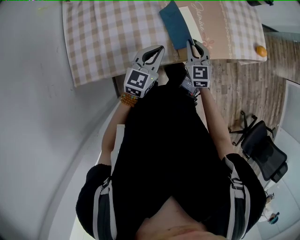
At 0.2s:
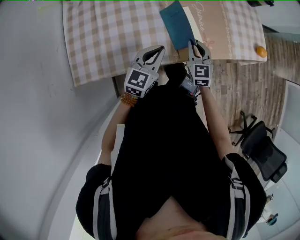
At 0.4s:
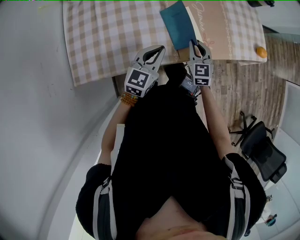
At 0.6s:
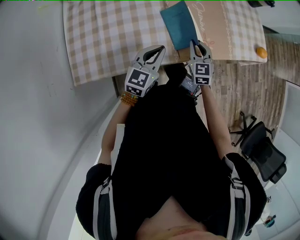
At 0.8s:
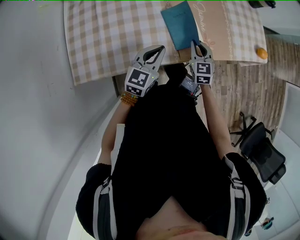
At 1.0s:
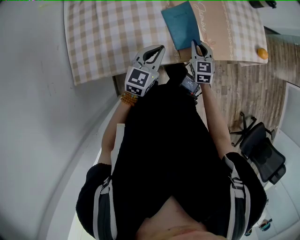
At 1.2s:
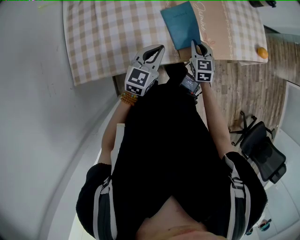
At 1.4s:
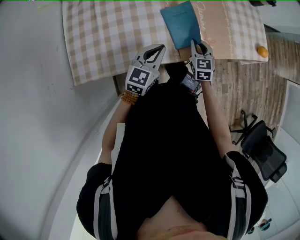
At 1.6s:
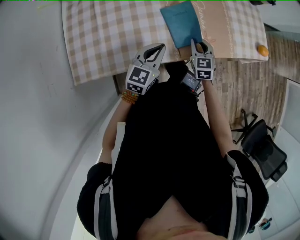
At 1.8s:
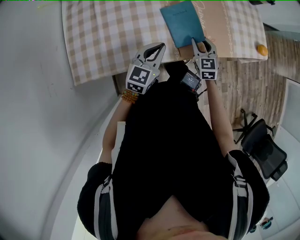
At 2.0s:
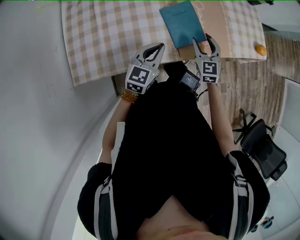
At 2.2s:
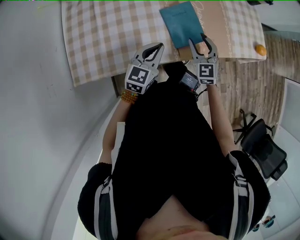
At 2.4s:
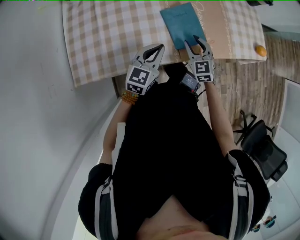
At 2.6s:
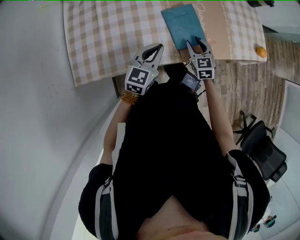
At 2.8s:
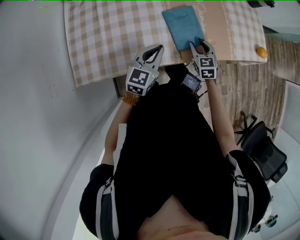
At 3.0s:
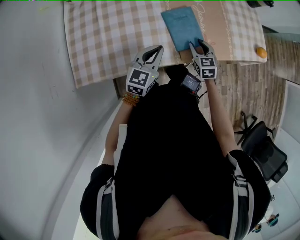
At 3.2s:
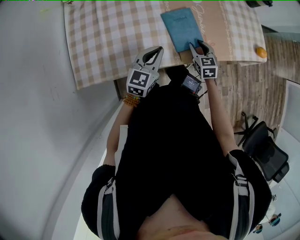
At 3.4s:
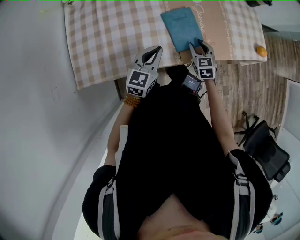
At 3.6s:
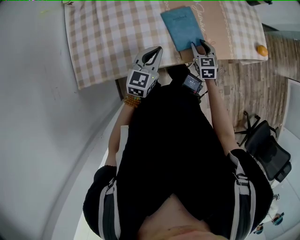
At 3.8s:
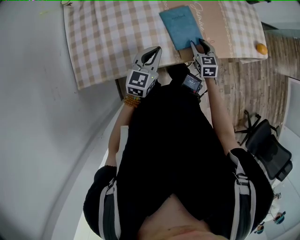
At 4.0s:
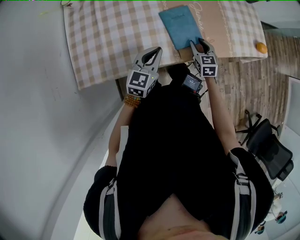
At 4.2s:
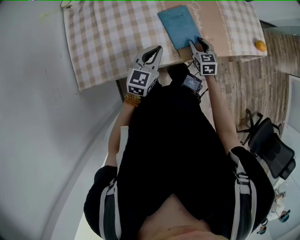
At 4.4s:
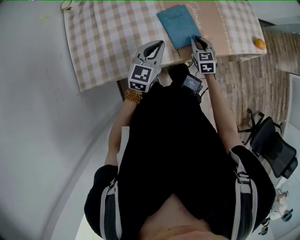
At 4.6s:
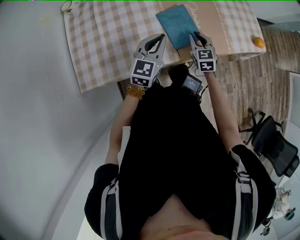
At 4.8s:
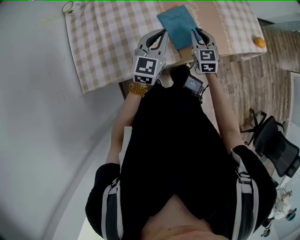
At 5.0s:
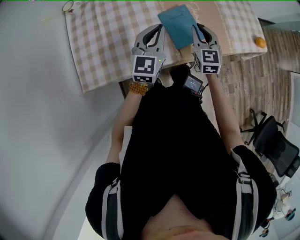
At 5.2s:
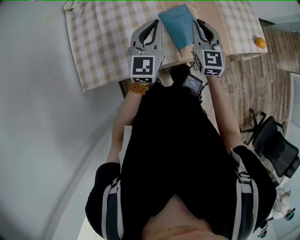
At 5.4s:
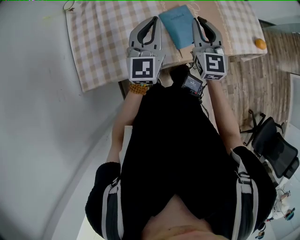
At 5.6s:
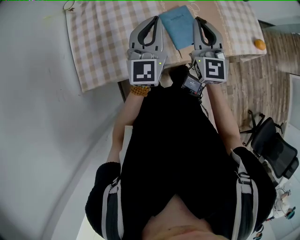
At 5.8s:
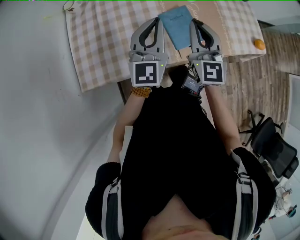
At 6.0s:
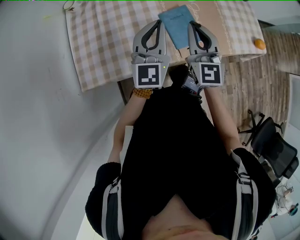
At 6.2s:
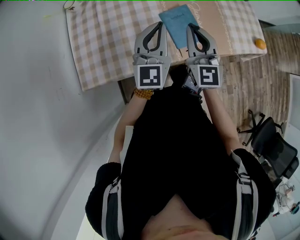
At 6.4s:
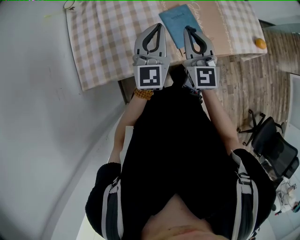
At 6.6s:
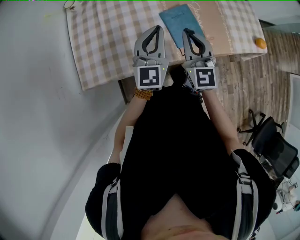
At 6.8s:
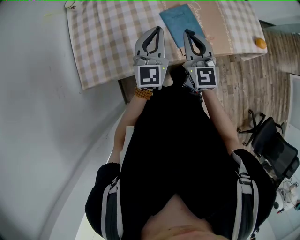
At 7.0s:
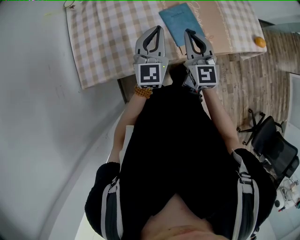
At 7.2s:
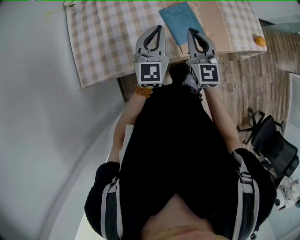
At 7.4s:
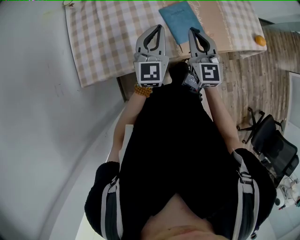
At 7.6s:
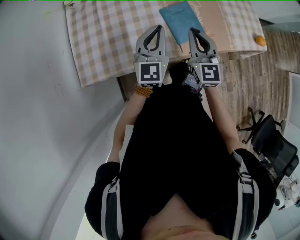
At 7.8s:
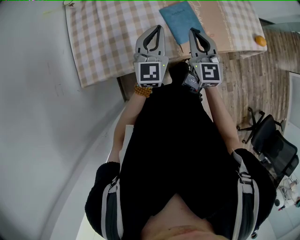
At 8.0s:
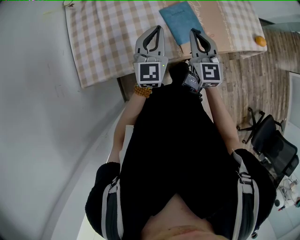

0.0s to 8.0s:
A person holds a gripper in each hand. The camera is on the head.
0.0s to 1.6s: The right gripper travels downward by about 5 cm.
1.6s to 3.2s: The right gripper moves about 5 cm upward and comes back, and opens up.
3.2s to 4.8s: The two grippers go some 10 cm upward. The right gripper closes its fingers.
4.8s to 6.4s: The right gripper is displaced upward and to the left by some 15 cm, and changes its angle by roughly 20 degrees; the left gripper heads upward, covering approximately 10 cm, and changes its angle by some 20 degrees.
6.4s to 8.0s: The two grippers go roughly 5 cm downward.

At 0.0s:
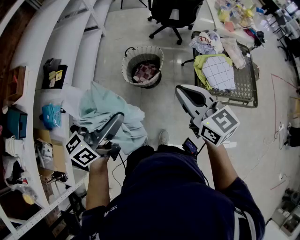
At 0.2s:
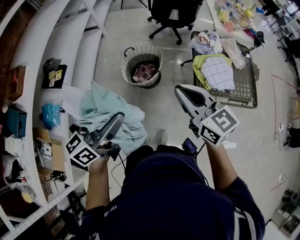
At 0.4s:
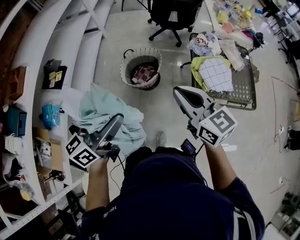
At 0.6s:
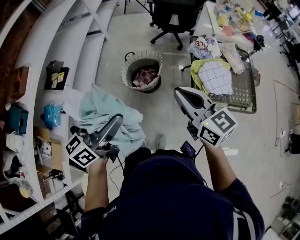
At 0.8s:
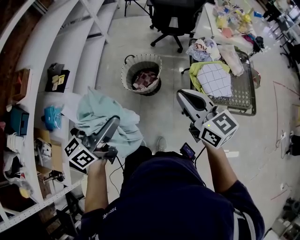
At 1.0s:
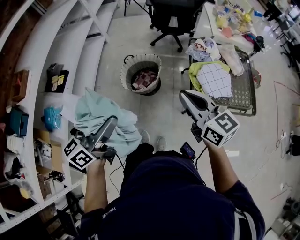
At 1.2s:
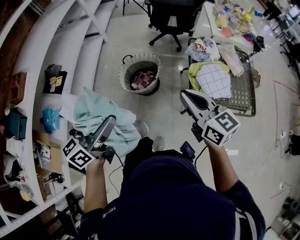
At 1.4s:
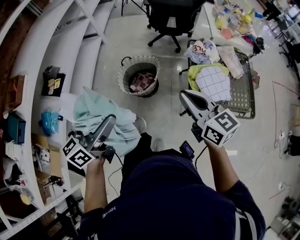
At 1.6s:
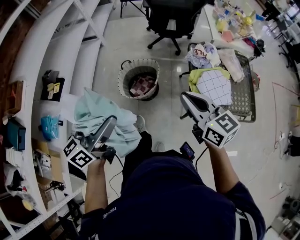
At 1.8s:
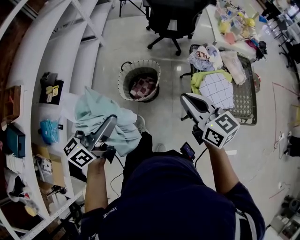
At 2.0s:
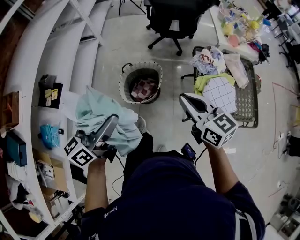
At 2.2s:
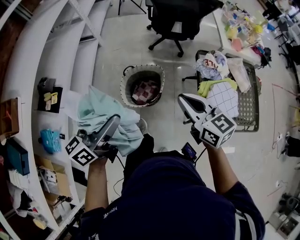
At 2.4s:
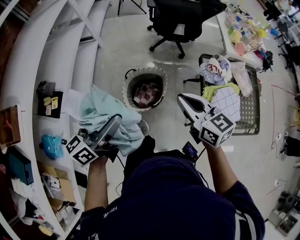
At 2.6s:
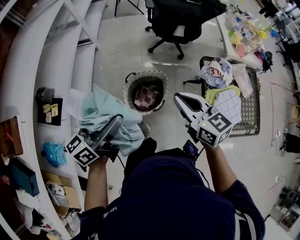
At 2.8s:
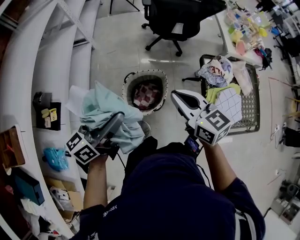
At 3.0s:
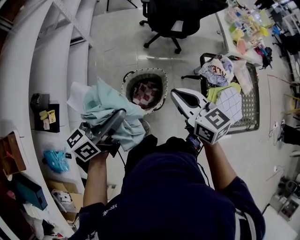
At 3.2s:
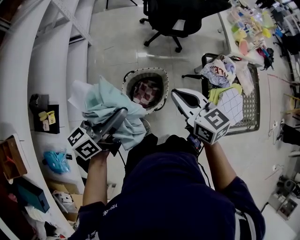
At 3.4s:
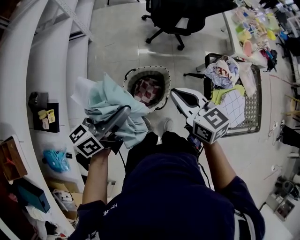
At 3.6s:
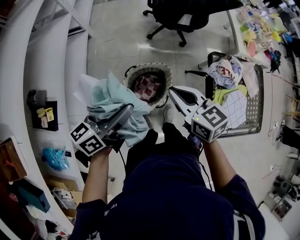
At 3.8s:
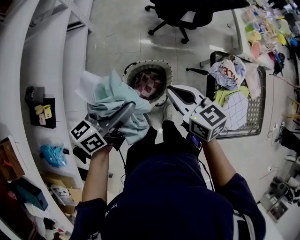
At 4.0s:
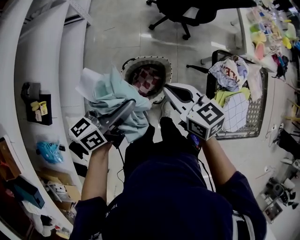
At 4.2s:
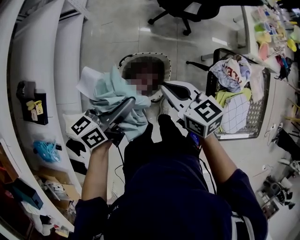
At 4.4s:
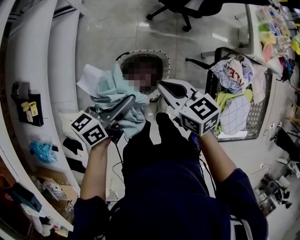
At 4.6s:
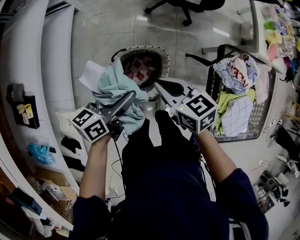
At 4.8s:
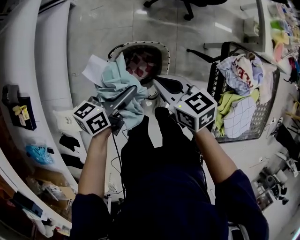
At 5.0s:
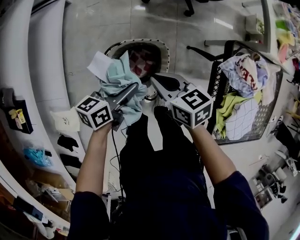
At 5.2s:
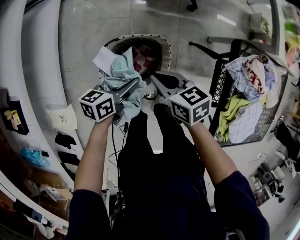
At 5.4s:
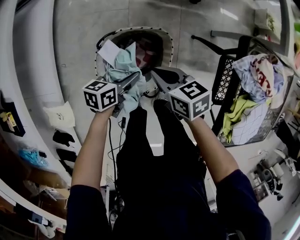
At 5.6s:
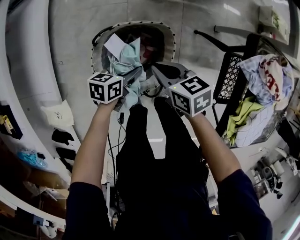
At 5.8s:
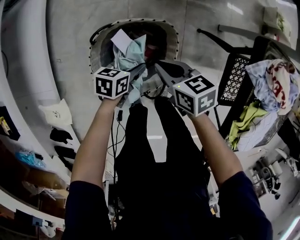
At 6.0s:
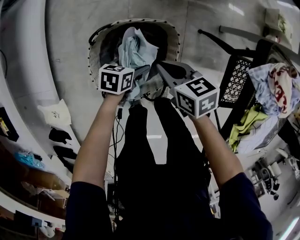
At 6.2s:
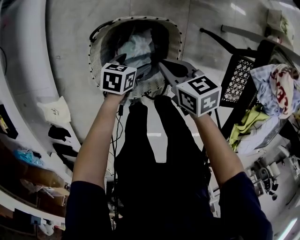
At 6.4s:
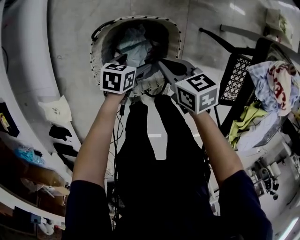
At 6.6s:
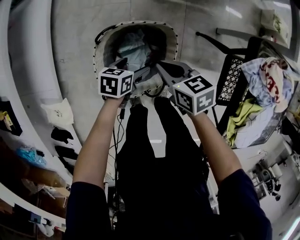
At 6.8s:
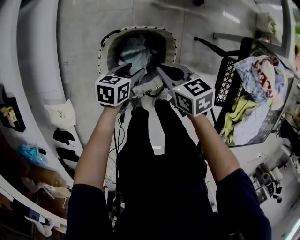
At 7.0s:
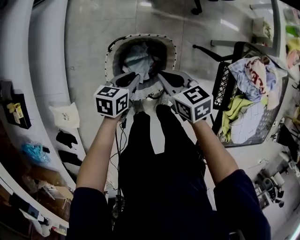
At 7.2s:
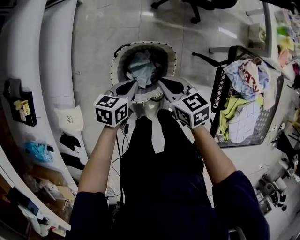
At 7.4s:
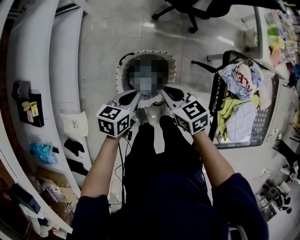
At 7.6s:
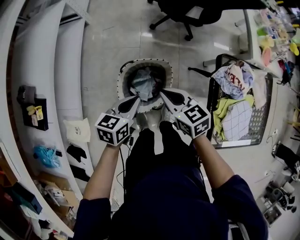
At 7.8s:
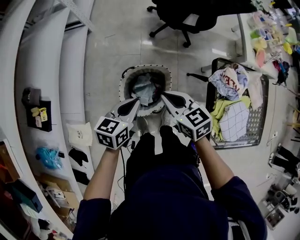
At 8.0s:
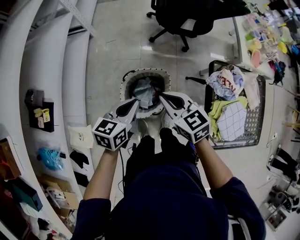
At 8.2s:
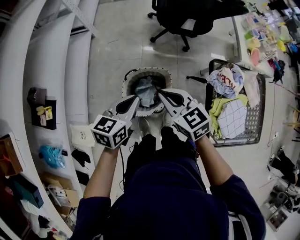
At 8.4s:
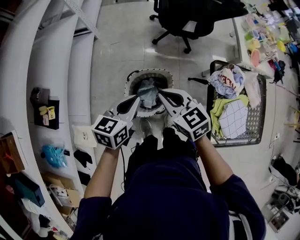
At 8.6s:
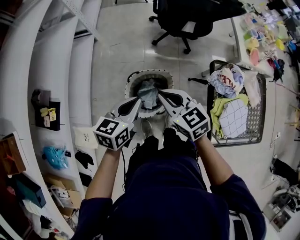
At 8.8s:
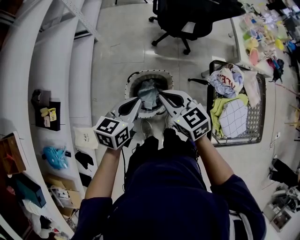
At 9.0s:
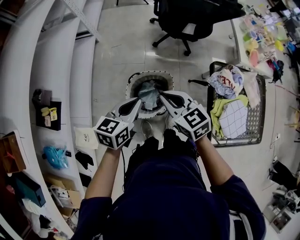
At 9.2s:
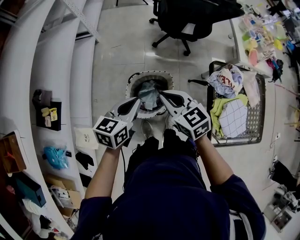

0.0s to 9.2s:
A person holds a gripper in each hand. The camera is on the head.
0.0s to 1.6s: The left gripper travels forward by roughly 5 cm. Meanwhile the right gripper travels to the right and forward by some 10 cm.
1.6s to 3.0s: The left gripper moves forward, some 30 cm; the right gripper shifts roughly 30 cm forward and to the left.
3.0s to 4.6s: The grippers both shift downward and forward by some 25 cm. The right gripper turns by some 20 degrees. Meanwhile the left gripper rotates roughly 20 degrees.
4.6s to 6.2s: Both grippers move downward, roughly 35 cm. The left gripper points its fingers approximately 40 degrees further downward, and opens.
6.2s to 7.6s: The grippers both shift upward by approximately 35 cm. The left gripper changes its angle by roughly 30 degrees, and closes up. The right gripper turns by some 20 degrees.
7.6s to 9.2s: The grippers both shift upward by approximately 15 cm.

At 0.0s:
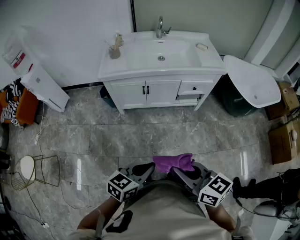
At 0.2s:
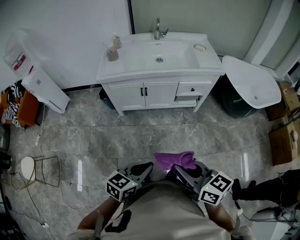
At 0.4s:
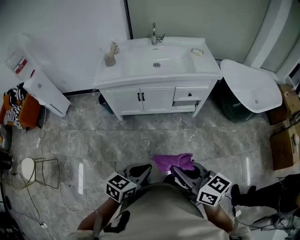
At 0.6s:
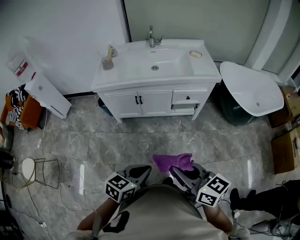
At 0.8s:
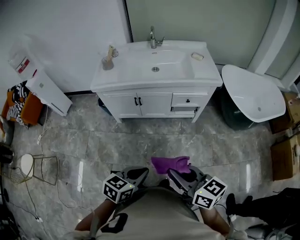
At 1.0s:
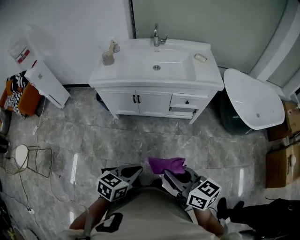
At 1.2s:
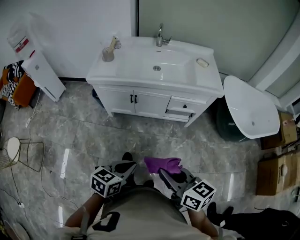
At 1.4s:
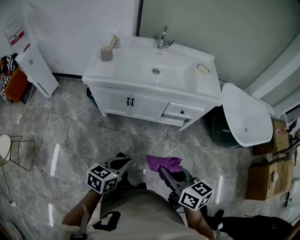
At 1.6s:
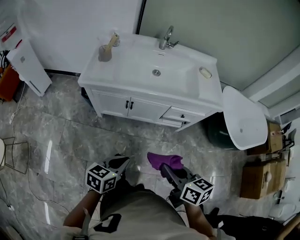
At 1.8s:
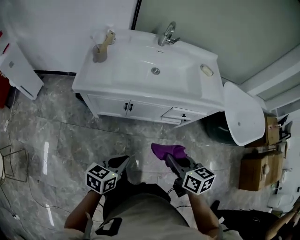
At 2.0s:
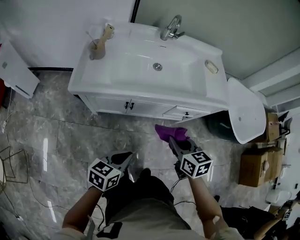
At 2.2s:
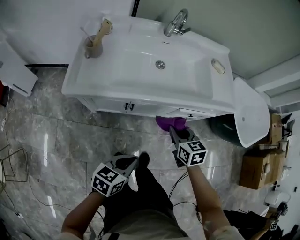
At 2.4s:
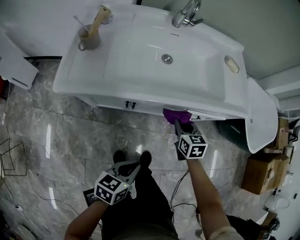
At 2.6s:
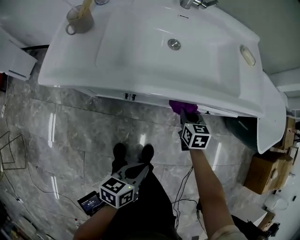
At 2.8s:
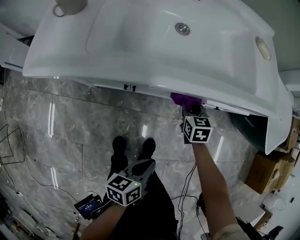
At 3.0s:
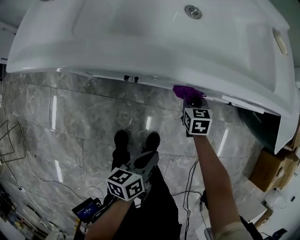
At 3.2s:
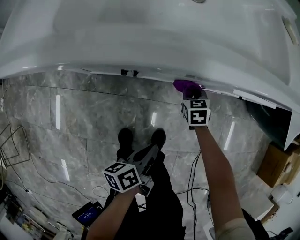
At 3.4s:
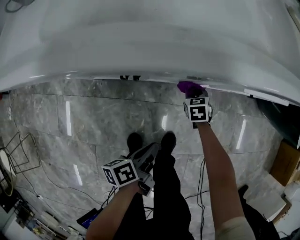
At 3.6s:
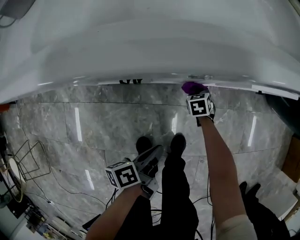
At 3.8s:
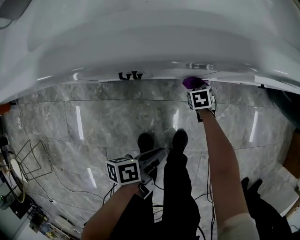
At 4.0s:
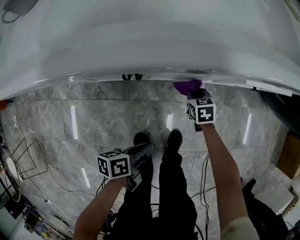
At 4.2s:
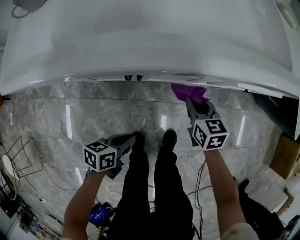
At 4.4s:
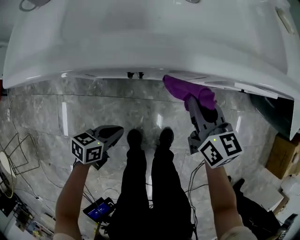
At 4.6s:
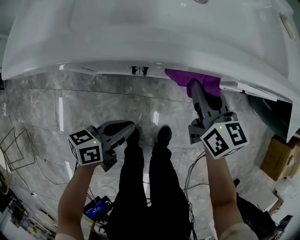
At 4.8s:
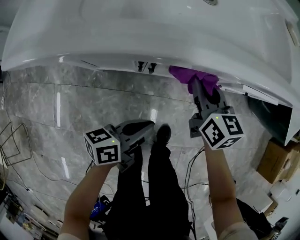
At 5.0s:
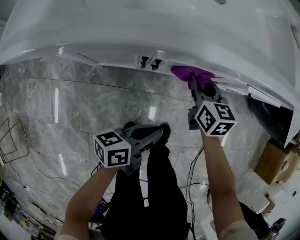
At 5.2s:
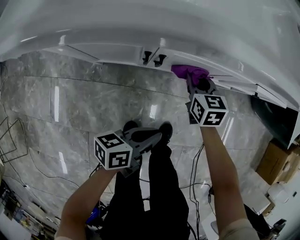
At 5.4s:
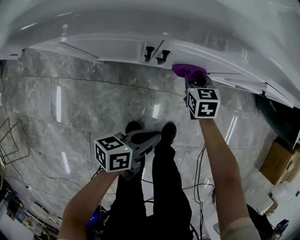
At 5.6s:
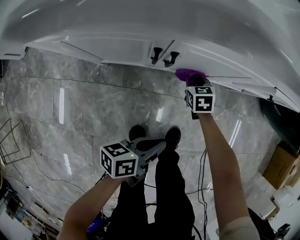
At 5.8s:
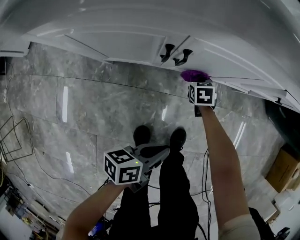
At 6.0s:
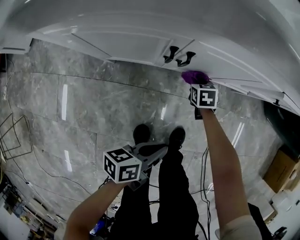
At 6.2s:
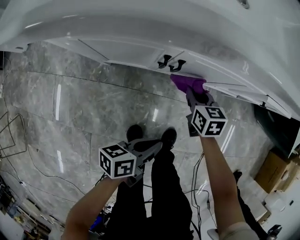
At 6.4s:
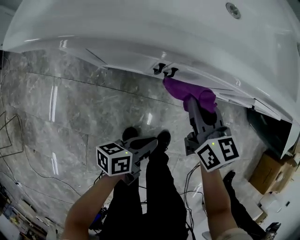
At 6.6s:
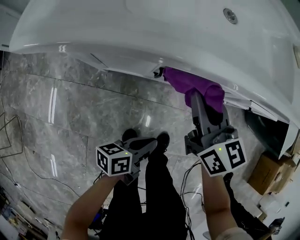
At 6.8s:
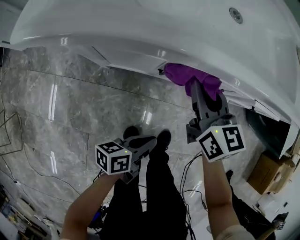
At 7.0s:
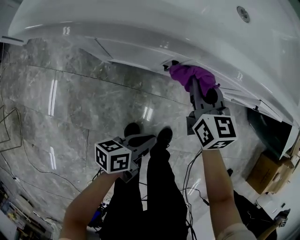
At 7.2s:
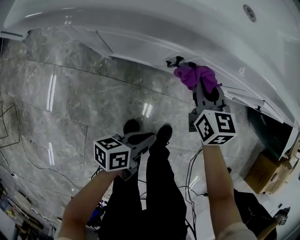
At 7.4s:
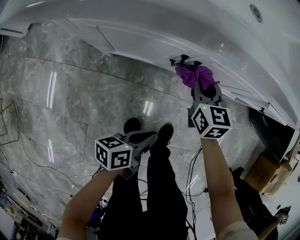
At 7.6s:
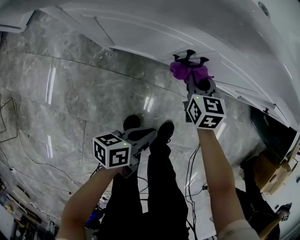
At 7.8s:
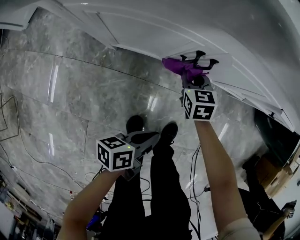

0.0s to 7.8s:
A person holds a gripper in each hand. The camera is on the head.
0.0s to 1.6s: Both grippers travel together forward, roughly 25 cm.
1.6s to 3.2s: The left gripper shifts roughly 40 cm downward and forward, and rotates around the line of its fingers by roughly 50 degrees, counterclockwise from behind; the right gripper moves downward and forward, about 70 cm, and rotates some 40 degrees.
3.2s to 4.6s: The left gripper is displaced to the left by about 10 cm, and swivels roughly 30 degrees. The right gripper goes approximately 25 cm upward, and angles its fingers upward, by approximately 30 degrees.
4.6s to 6.2s: The left gripper goes some 10 cm downward, to the right and backward. Meanwhile the right gripper shifts some 20 cm downward, and changes its angle by some 20 degrees.
6.2s to 7.8s: The right gripper goes roughly 10 cm to the left, and moves roughly 25 cm upward and comes back. Meanwhile the left gripper moves some 5 cm.
